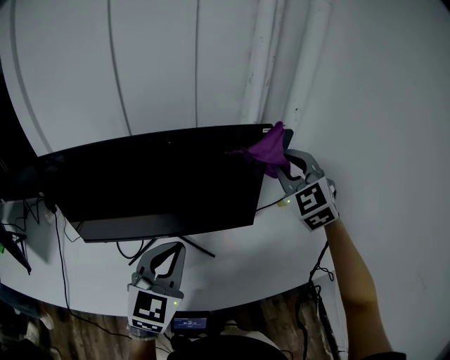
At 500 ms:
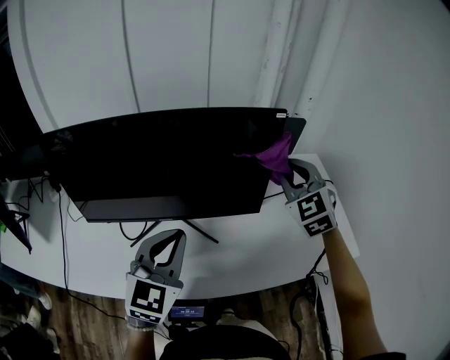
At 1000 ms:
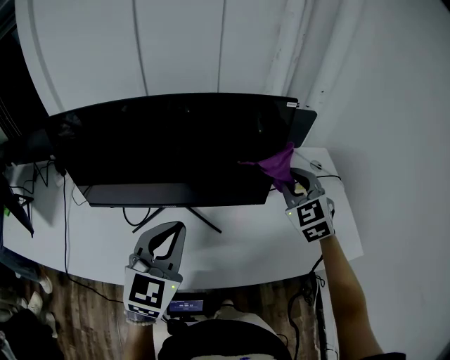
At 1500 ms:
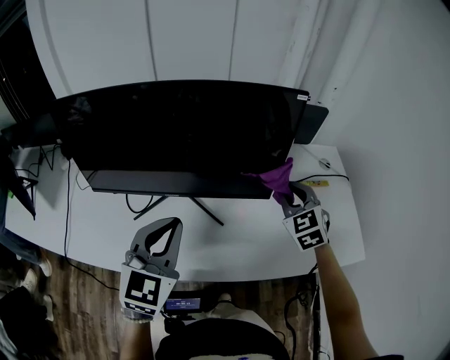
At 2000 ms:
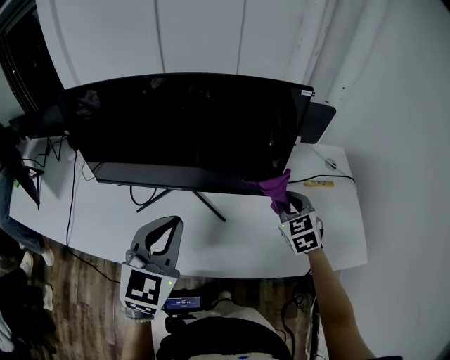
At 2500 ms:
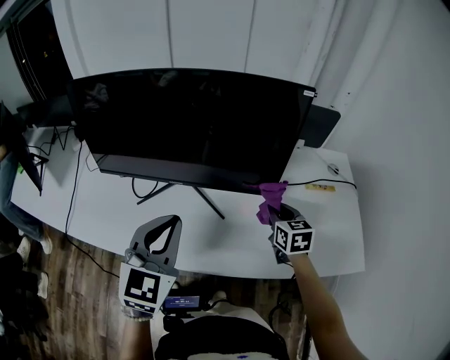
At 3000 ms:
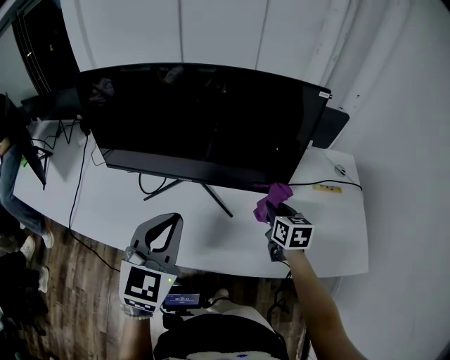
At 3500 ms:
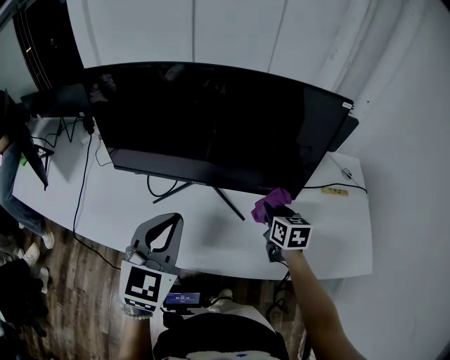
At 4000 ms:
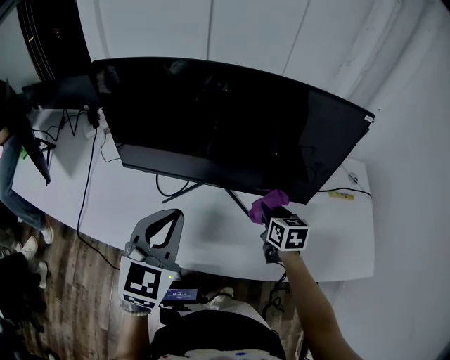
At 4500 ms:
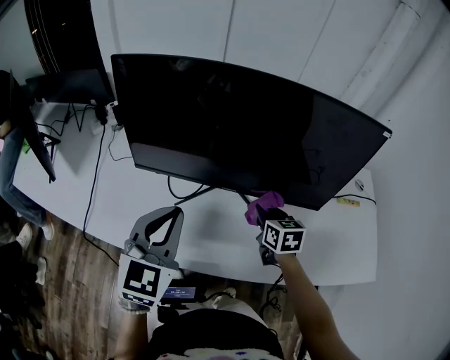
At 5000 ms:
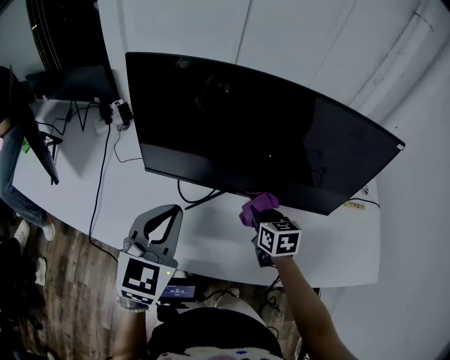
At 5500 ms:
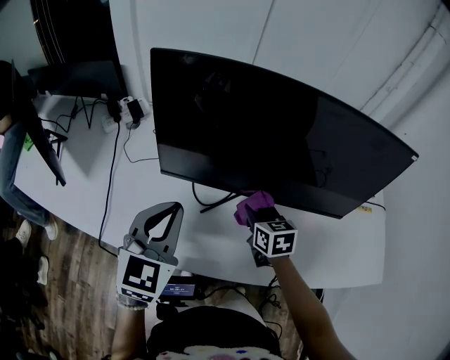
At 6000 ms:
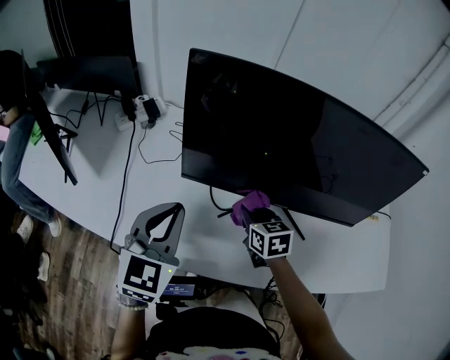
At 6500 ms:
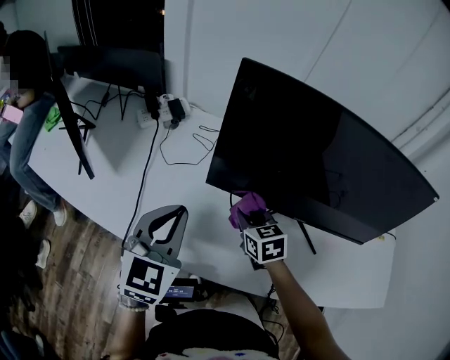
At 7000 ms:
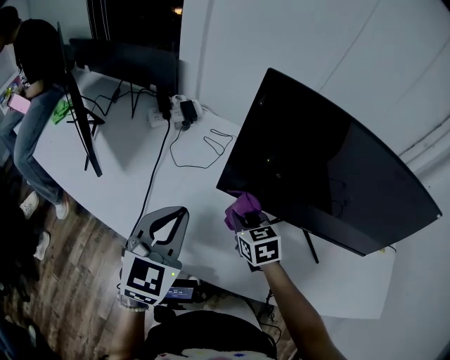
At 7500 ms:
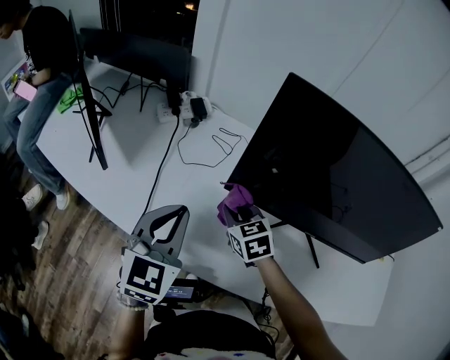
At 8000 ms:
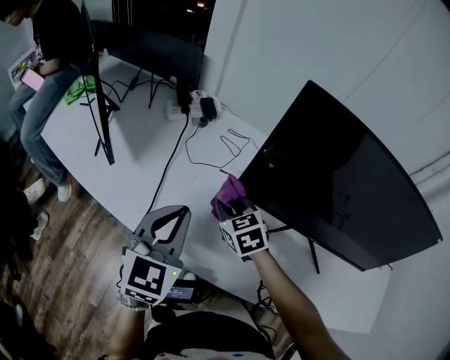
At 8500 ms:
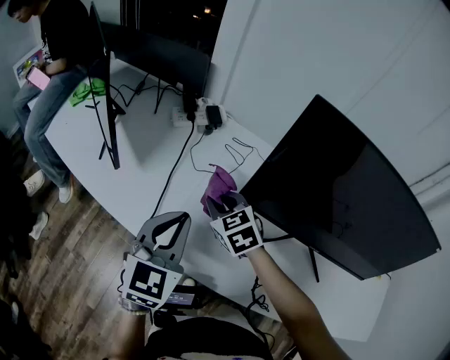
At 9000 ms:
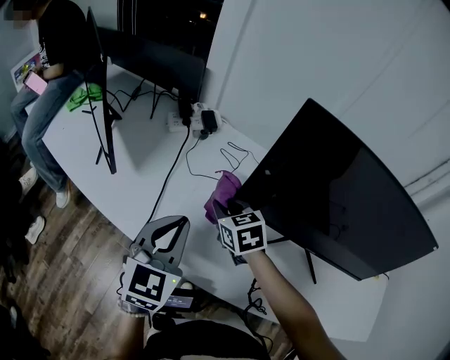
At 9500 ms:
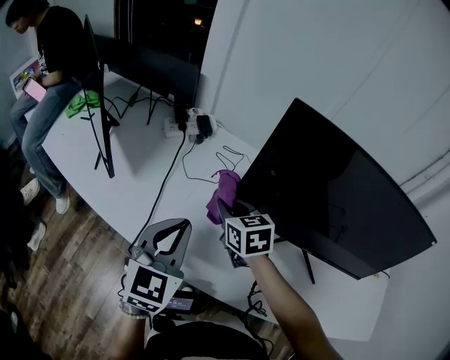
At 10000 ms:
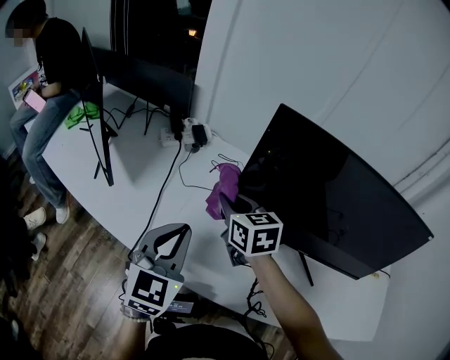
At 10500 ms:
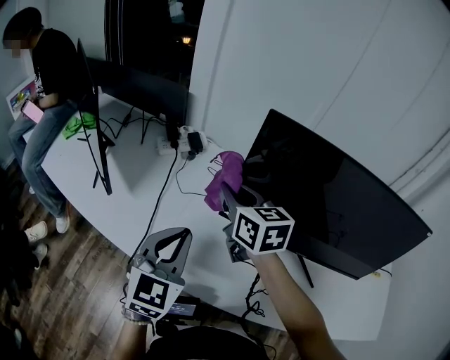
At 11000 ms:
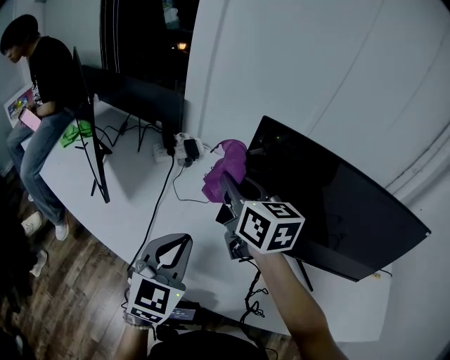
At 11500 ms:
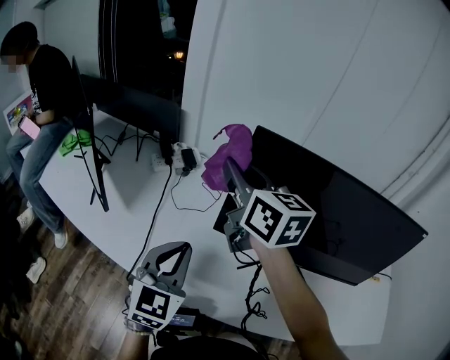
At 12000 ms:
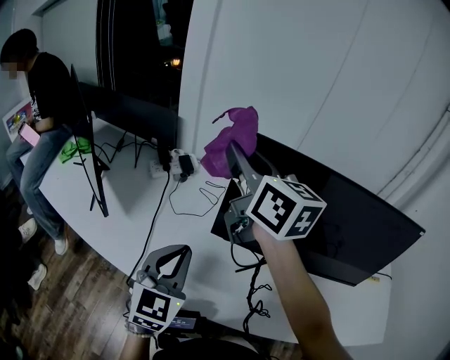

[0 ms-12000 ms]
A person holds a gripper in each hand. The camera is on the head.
0 ms to 2000 ms: The right gripper goes about 25 cm downward, and swivels roughly 30 degrees.
2000 ms to 4000 ms: Both grippers travel together to the left, some 15 cm. The right gripper rotates approximately 40 degrees.
4000 ms to 6000 ms: The grippers both shift to the left by approximately 25 cm.
6000 ms to 8000 ms: The right gripper heads to the left, covering about 20 cm, and swivels approximately 30 degrees; the left gripper moves to the left, roughly 10 cm.
8000 ms to 10000 ms: The right gripper shifts about 10 cm upward, and rotates approximately 20 degrees.
10000 ms to 12000 ms: The right gripper shifts some 25 cm upward, and tilts its fingers roughly 30 degrees upward.

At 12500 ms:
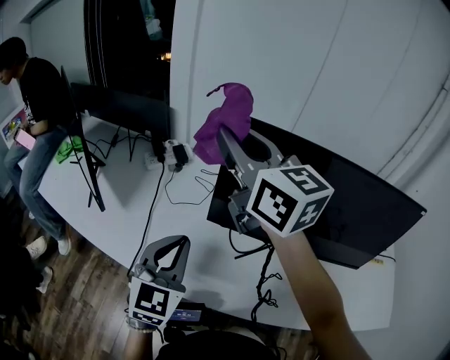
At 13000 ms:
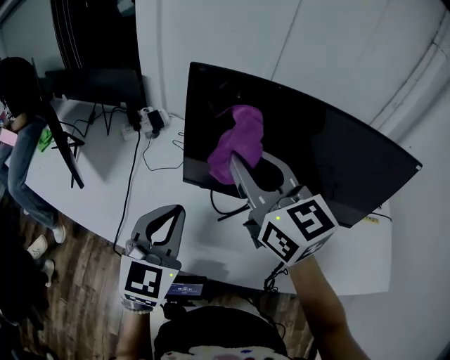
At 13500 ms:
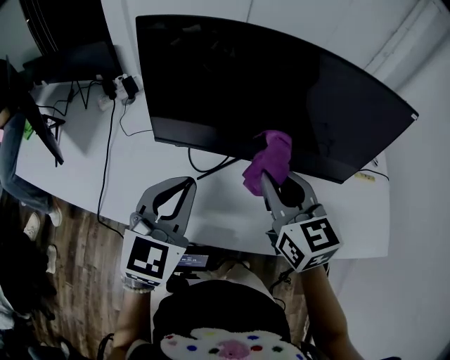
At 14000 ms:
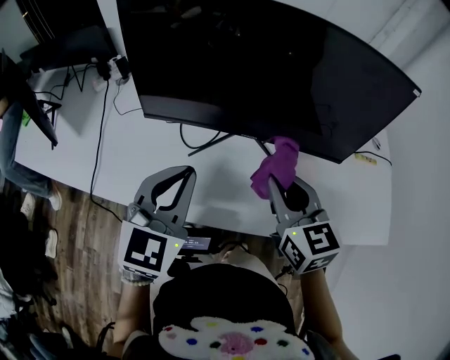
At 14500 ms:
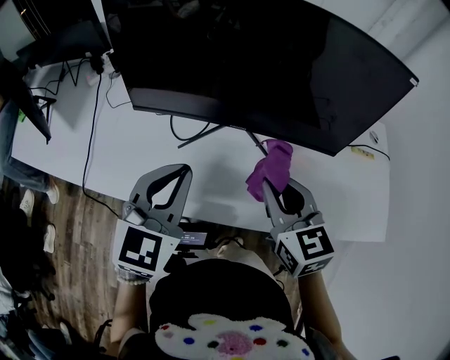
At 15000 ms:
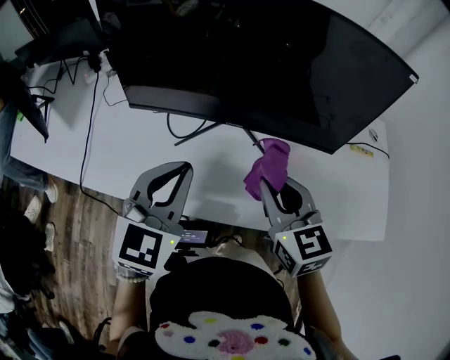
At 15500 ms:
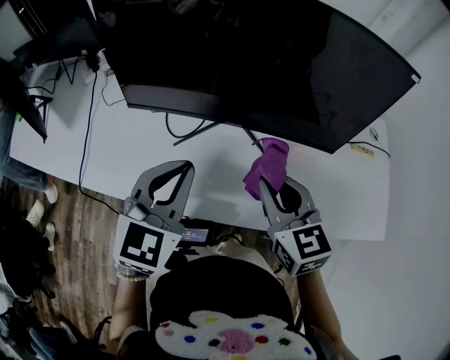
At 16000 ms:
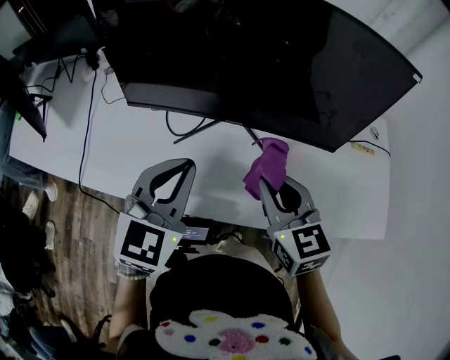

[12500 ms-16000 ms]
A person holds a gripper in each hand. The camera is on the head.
12500 ms to 14500 ms: The right gripper moves to the right, downward and backward, approximately 50 cm, and turns by some 40 degrees, while the left gripper moves to the right, some 25 cm.
14500 ms to 16000 ms: The grippers stay close to where they were, moving slightly.

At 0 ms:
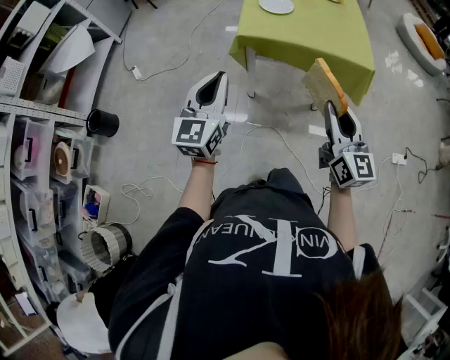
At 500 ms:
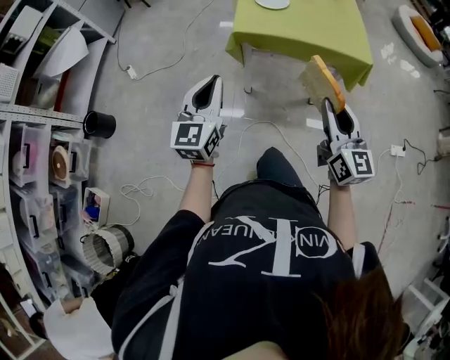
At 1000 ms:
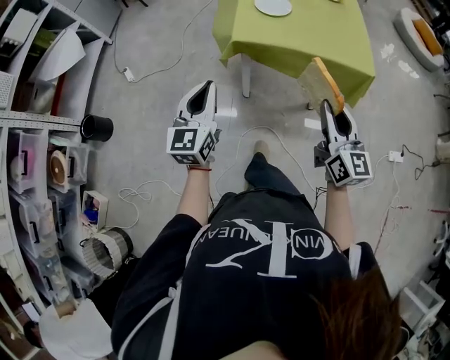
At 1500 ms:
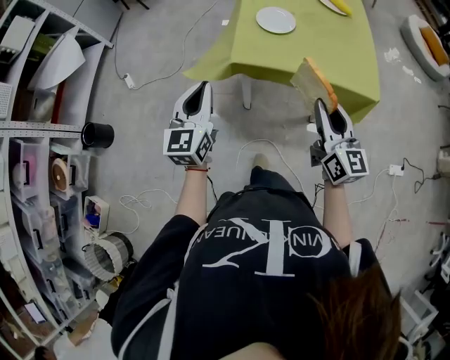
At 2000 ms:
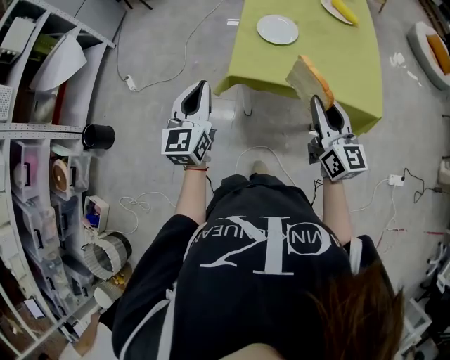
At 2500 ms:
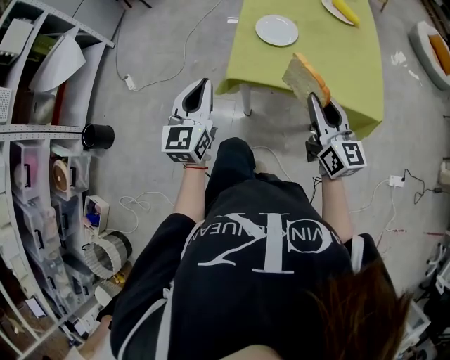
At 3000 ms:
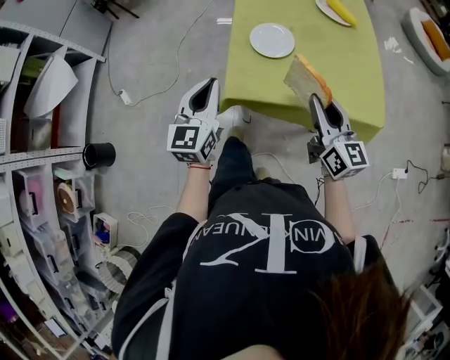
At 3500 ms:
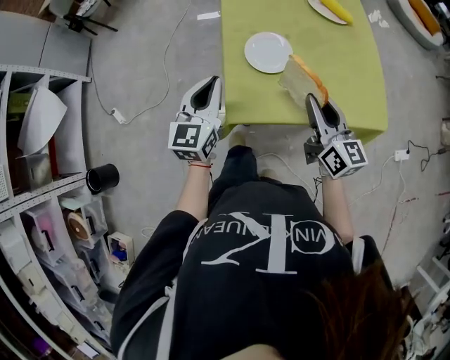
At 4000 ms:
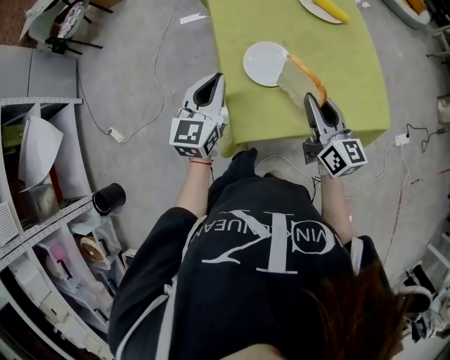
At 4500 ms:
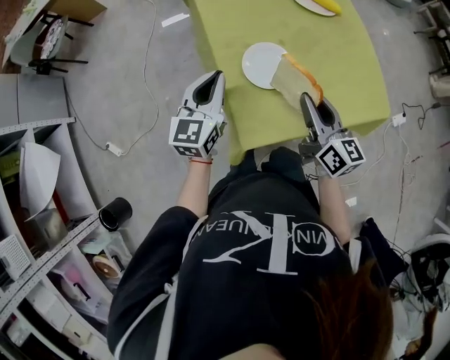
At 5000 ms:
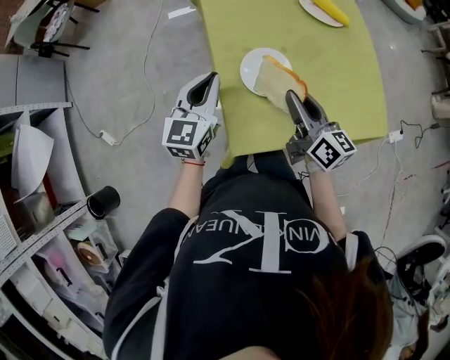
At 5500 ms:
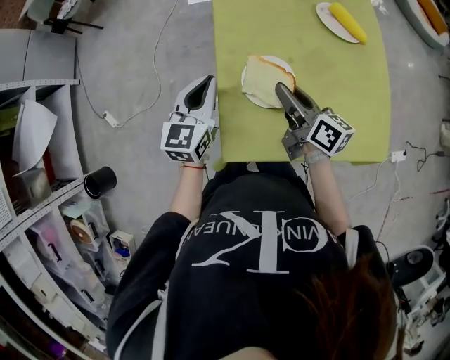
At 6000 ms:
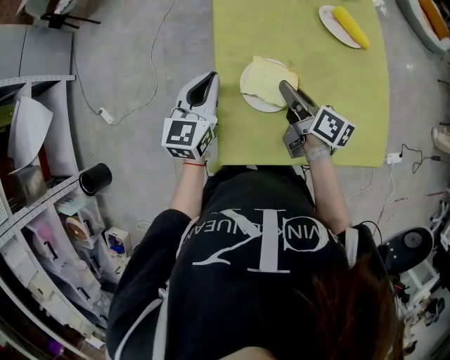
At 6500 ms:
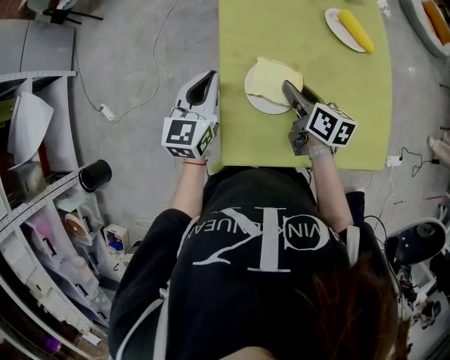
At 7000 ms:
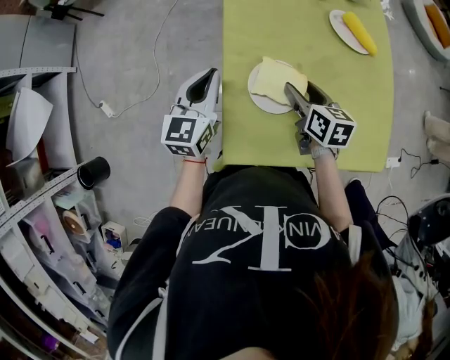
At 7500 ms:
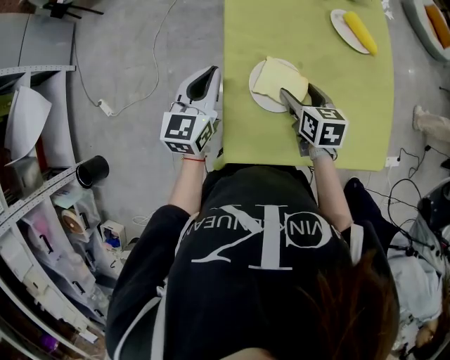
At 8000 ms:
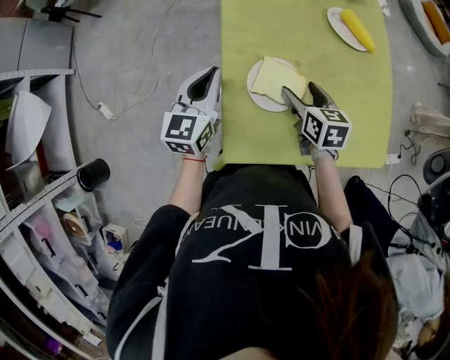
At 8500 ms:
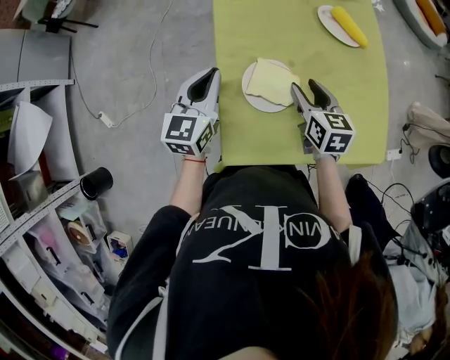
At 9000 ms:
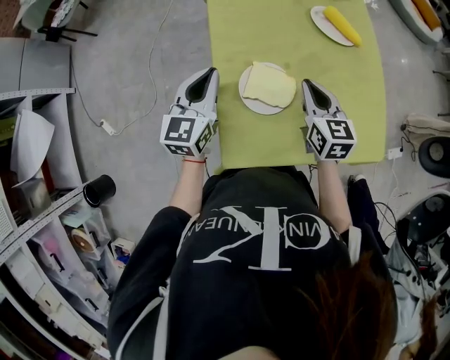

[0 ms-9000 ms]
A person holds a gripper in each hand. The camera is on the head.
0 ms to 2000 ms: Both grippers travel together forward, some 20 cm.
2000 ms to 4500 ms: The left gripper moves approximately 35 cm, and rotates about 30 degrees. Meanwhile the right gripper ends up roughly 25 cm from where it was, and swivels about 30 degrees.
4500 ms to 7000 ms: The left gripper moves forward, about 5 cm. The right gripper is displaced forward and downward by some 15 cm, turns by roughly 30 degrees, and opens its fingers.
7000 ms to 9000 ms: The right gripper heads upward, covering roughly 5 cm, turns by about 20 degrees, and closes its fingers.

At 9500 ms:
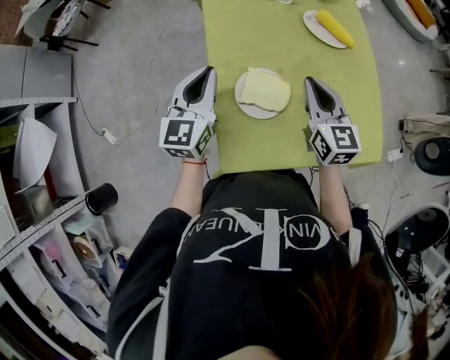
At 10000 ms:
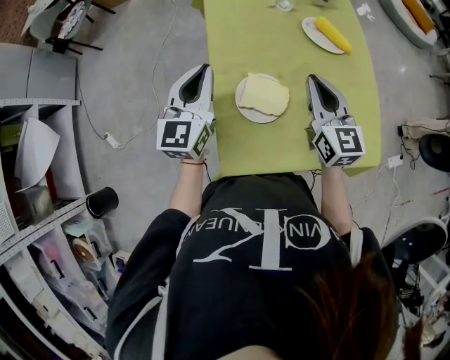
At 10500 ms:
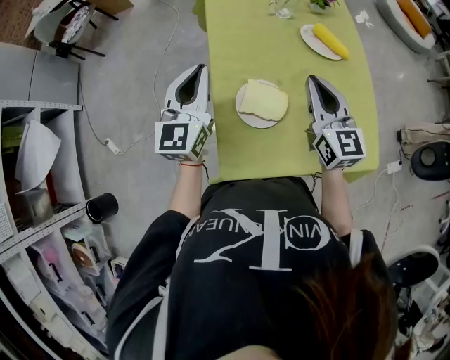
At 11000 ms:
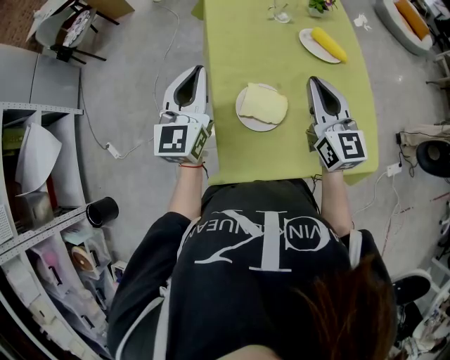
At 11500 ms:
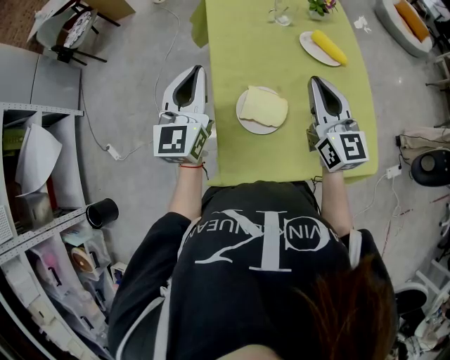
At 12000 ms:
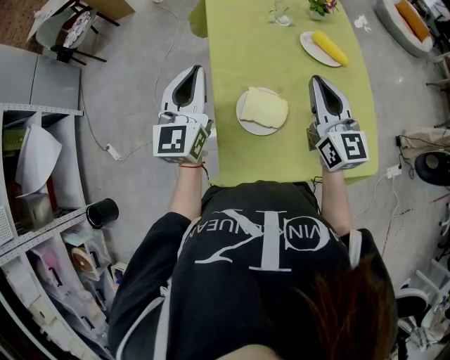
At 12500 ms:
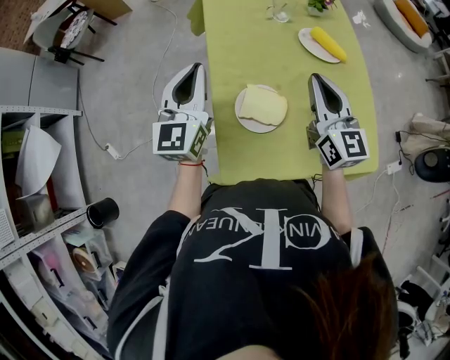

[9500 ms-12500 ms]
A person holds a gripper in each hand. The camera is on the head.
9500 ms to 11000 ms: The two grippers go some 5 cm upward.
11000 ms to 12500 ms: There are only small adjustments of the grippers.
